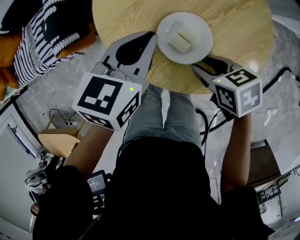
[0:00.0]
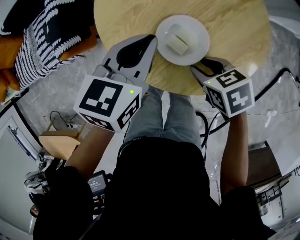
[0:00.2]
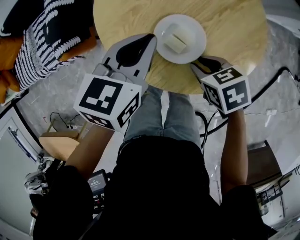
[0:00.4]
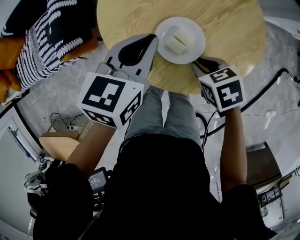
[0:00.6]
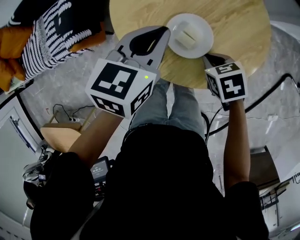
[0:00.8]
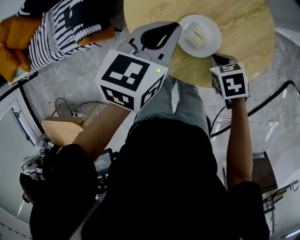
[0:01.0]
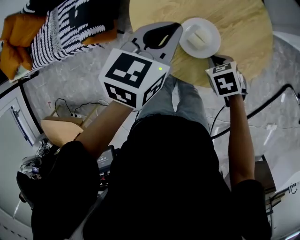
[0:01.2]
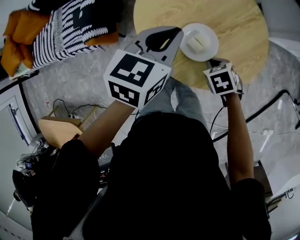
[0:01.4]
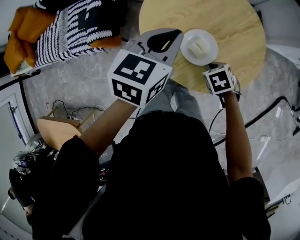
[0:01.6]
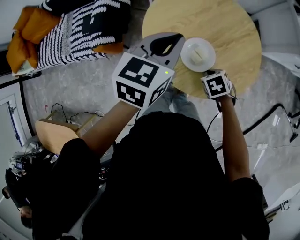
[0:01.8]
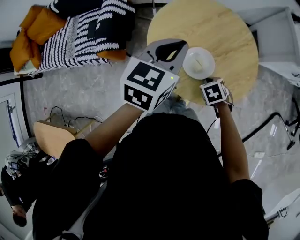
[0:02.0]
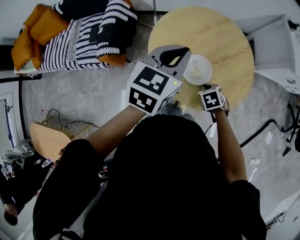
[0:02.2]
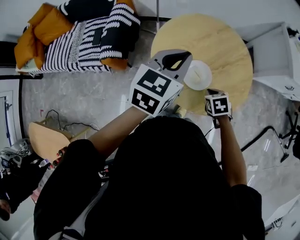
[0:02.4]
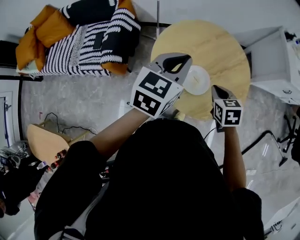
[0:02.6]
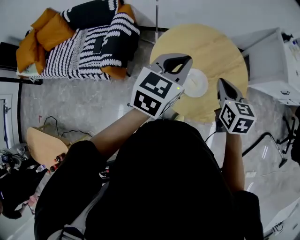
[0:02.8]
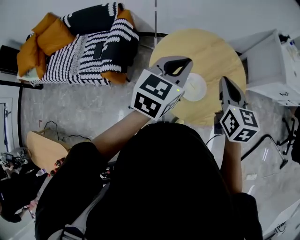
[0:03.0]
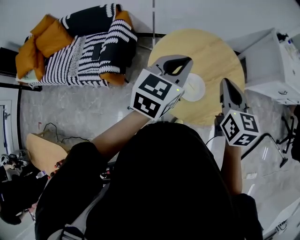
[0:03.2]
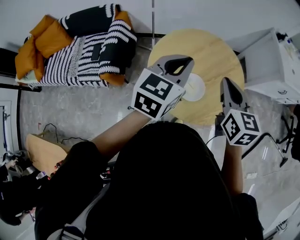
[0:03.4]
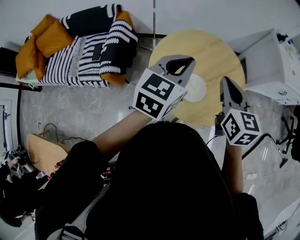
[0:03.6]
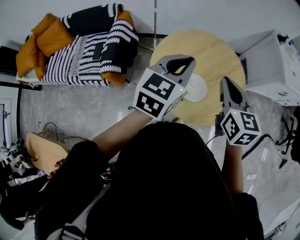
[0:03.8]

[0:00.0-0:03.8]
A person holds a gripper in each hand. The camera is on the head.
0:00.0 to 0:01.2: The left gripper goes approximately 5 cm upward. Meanwhile the right gripper turns by roughly 30 degrees, and closes up.
0:01.2 to 0:02.6: The grippers both shift upward by about 15 cm. The right gripper turns by some 20 degrees.
0:02.6 to 0:03.8: The right gripper is displaced upward by roughly 20 cm, and swivels approximately 30 degrees.

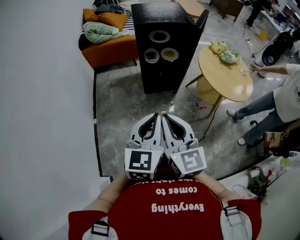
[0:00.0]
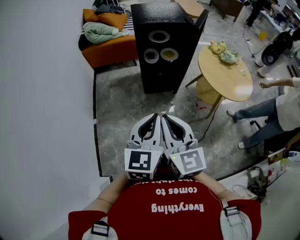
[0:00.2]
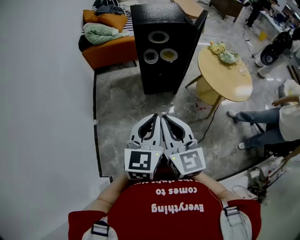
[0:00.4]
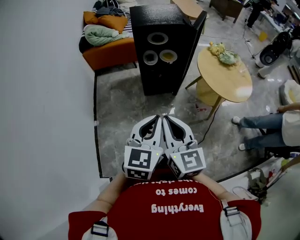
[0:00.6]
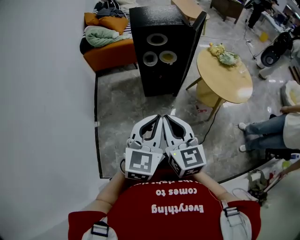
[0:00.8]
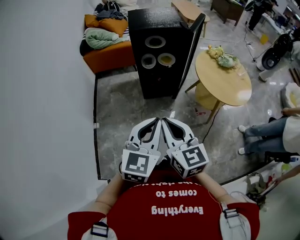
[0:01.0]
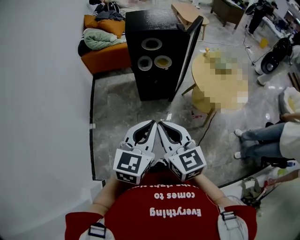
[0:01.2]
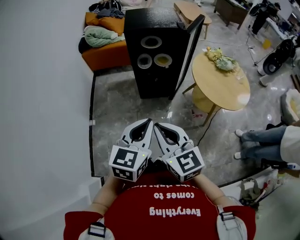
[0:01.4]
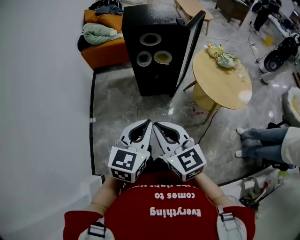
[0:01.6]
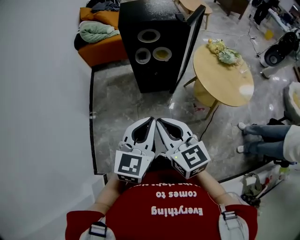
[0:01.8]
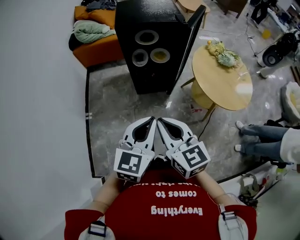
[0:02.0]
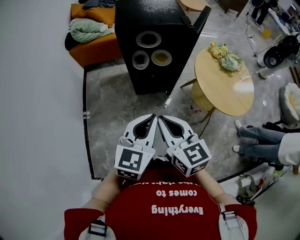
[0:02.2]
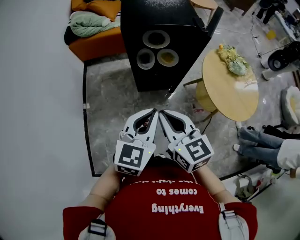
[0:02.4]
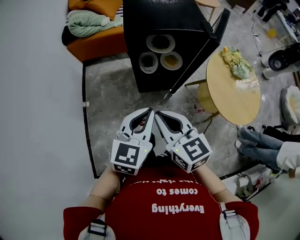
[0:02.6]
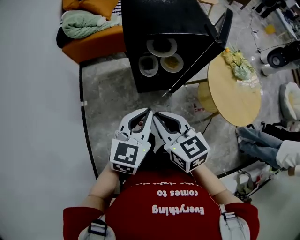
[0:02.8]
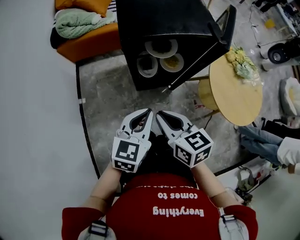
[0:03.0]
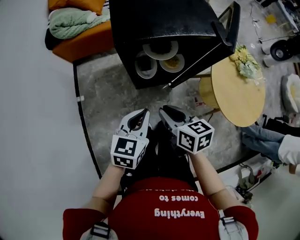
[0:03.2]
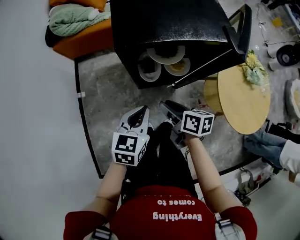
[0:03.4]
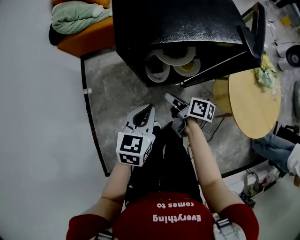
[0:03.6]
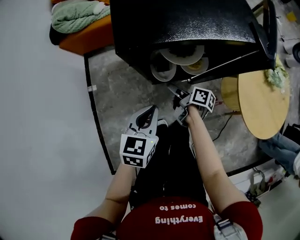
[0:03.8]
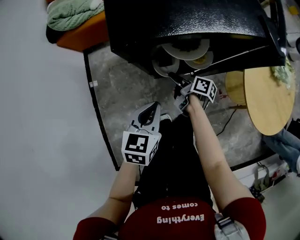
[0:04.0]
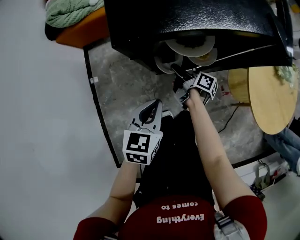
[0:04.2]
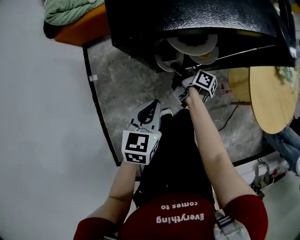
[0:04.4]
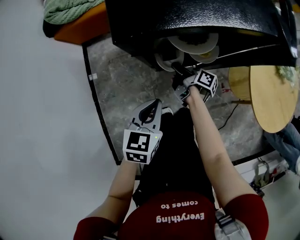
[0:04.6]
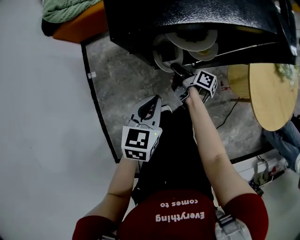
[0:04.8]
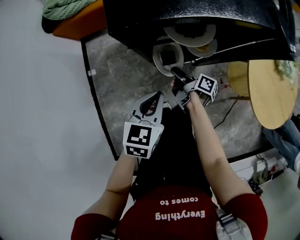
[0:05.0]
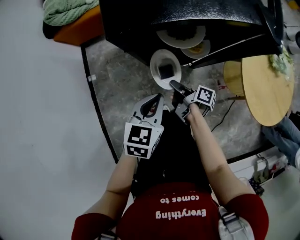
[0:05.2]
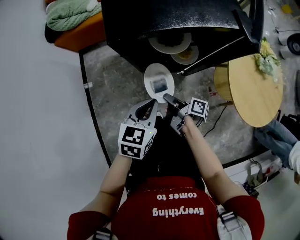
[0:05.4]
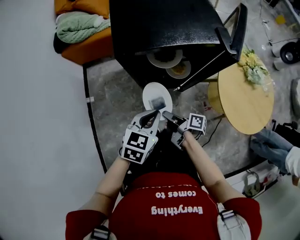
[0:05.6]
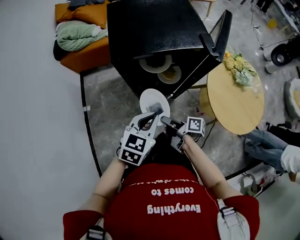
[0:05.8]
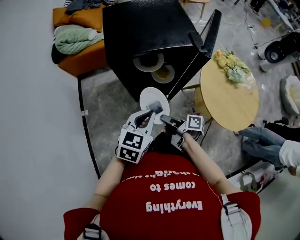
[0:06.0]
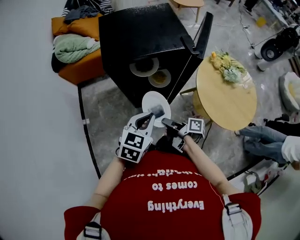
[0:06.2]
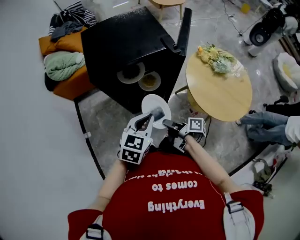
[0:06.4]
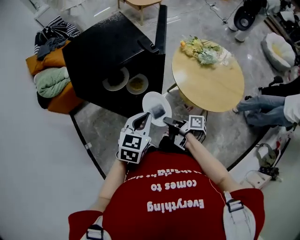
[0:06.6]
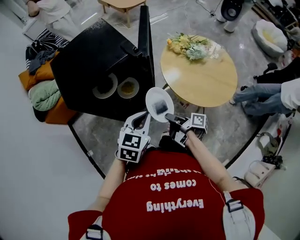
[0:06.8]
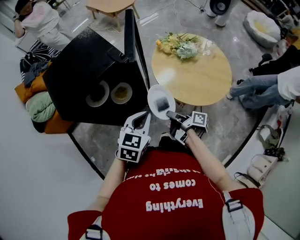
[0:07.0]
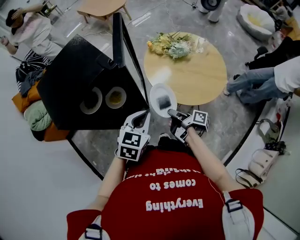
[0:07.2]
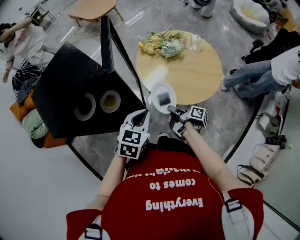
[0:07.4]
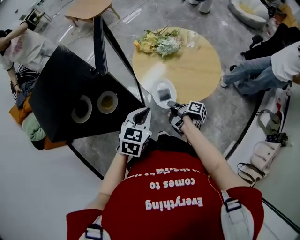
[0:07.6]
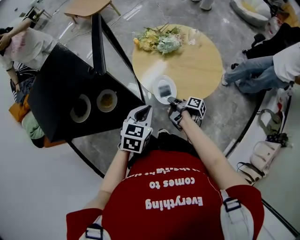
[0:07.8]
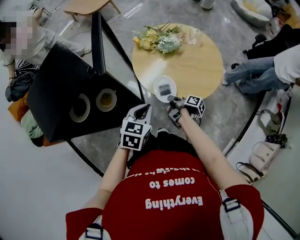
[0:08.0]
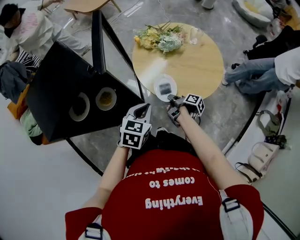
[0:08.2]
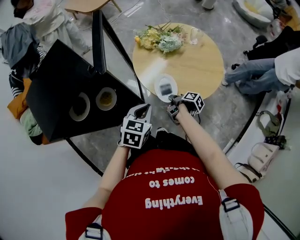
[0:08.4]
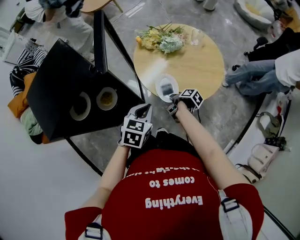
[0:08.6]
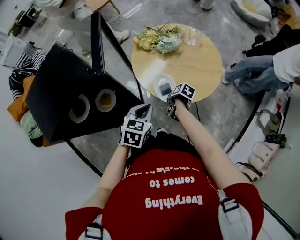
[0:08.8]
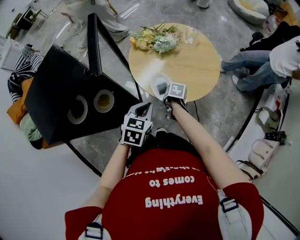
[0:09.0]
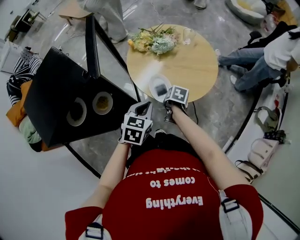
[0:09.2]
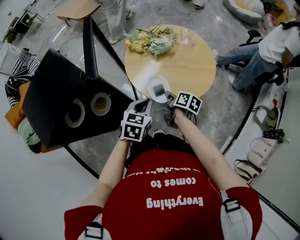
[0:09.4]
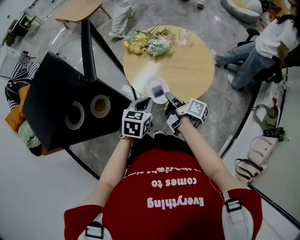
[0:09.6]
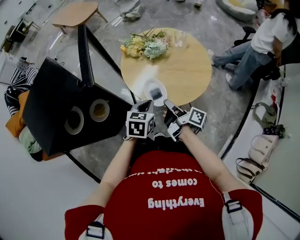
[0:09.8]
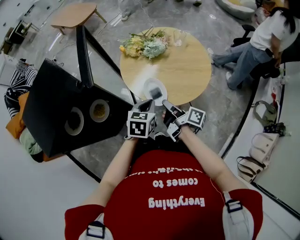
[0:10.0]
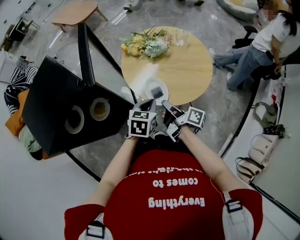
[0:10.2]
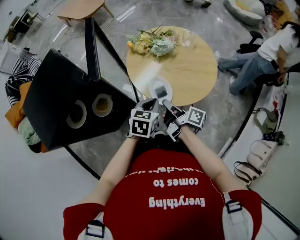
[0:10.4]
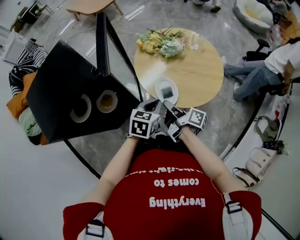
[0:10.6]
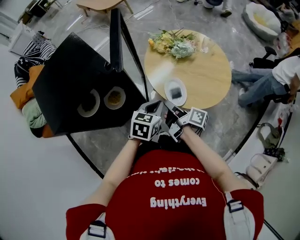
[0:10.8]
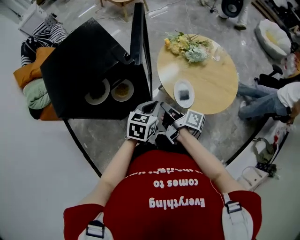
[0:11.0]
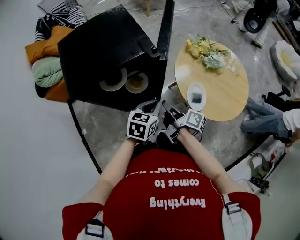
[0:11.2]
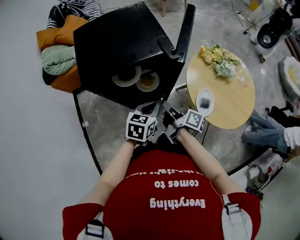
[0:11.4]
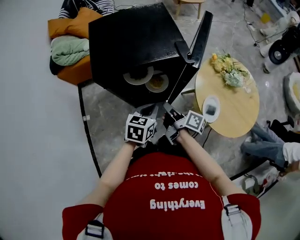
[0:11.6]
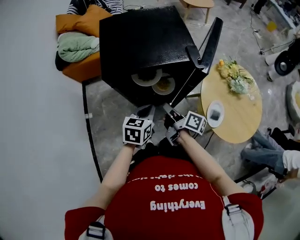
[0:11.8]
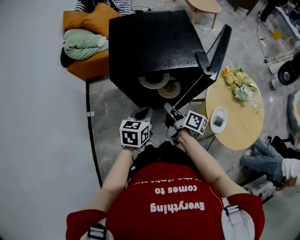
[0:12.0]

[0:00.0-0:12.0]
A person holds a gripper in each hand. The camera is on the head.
0:00.0 to 0:01.6: The left gripper shifts by about 10 cm.
0:01.6 to 0:03.0: The left gripper ends up about 35 cm from where it was.
0:03.0 to 0:04.4: The left gripper goes some 20 cm downward.
0:04.4 to 0:06.0: The left gripper shifts roughly 15 cm upward.
0:06.0 to 0:07.6: The left gripper changes place by approximately 25 cm, and turns by roughly 30 degrees.
0:07.6 to 0:09.0: The left gripper changes place by some 5 cm.
0:10.4 to 0:12.0: The left gripper shifts by some 35 cm, and rotates some 50 degrees.

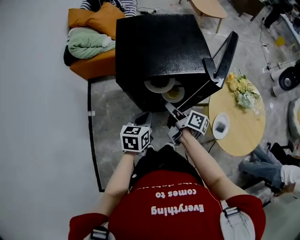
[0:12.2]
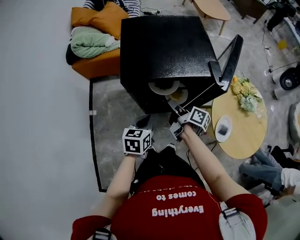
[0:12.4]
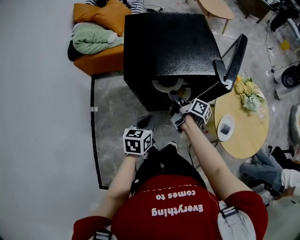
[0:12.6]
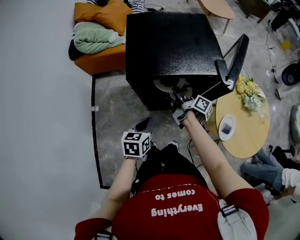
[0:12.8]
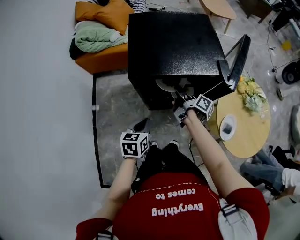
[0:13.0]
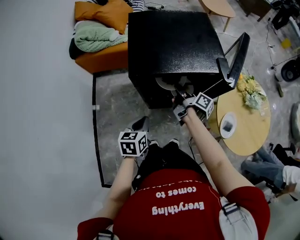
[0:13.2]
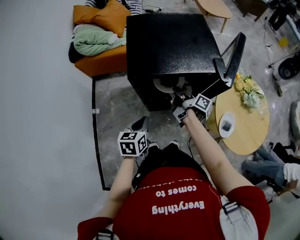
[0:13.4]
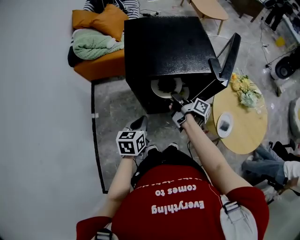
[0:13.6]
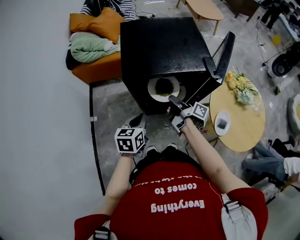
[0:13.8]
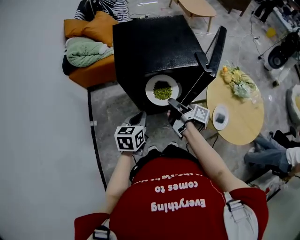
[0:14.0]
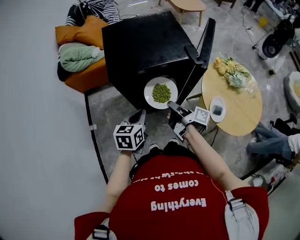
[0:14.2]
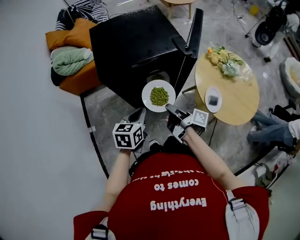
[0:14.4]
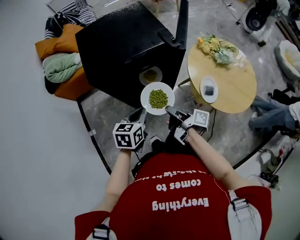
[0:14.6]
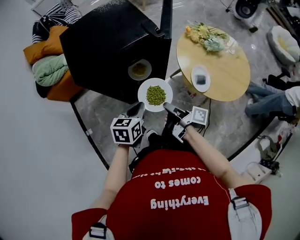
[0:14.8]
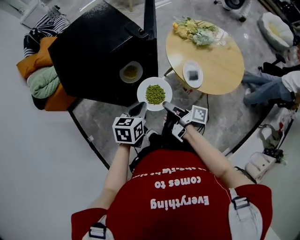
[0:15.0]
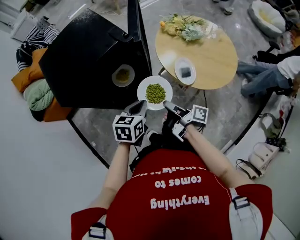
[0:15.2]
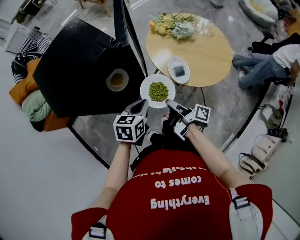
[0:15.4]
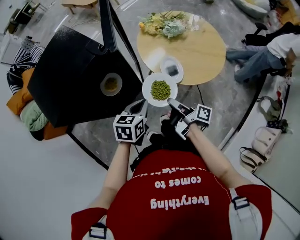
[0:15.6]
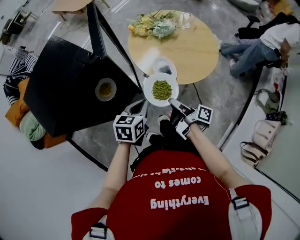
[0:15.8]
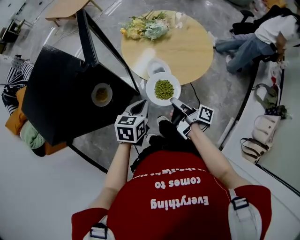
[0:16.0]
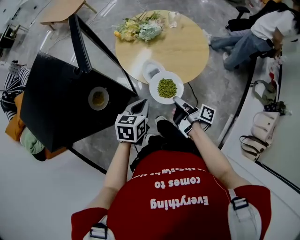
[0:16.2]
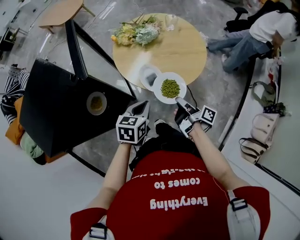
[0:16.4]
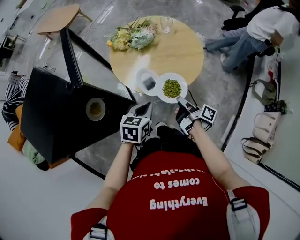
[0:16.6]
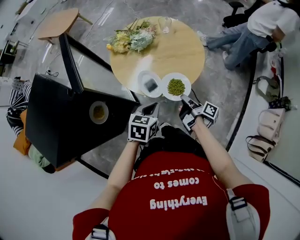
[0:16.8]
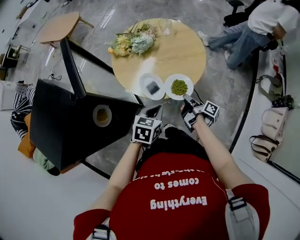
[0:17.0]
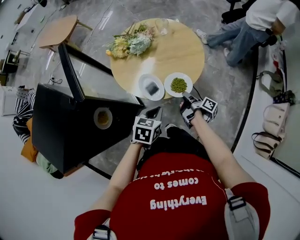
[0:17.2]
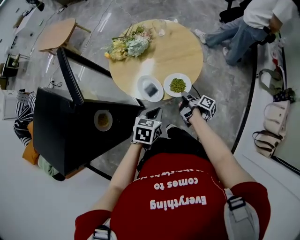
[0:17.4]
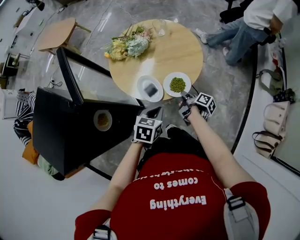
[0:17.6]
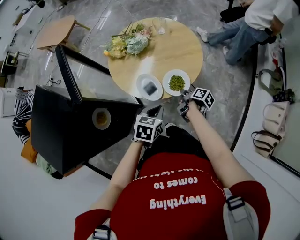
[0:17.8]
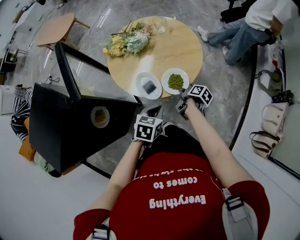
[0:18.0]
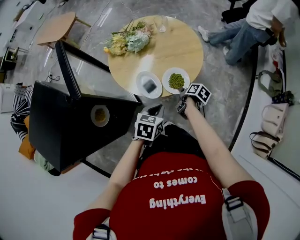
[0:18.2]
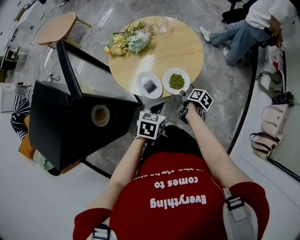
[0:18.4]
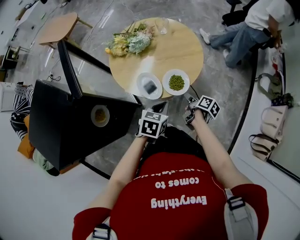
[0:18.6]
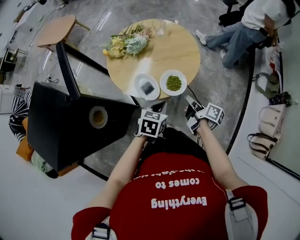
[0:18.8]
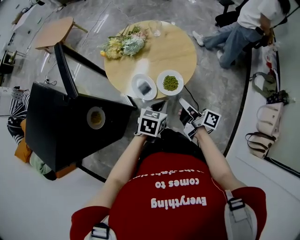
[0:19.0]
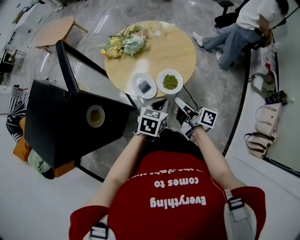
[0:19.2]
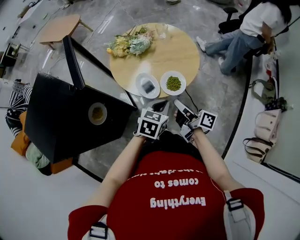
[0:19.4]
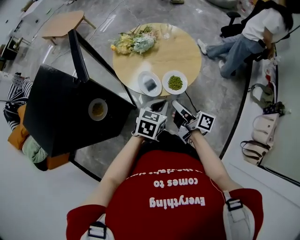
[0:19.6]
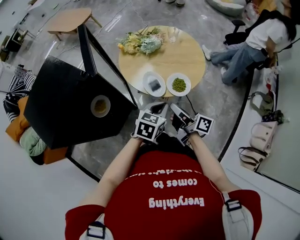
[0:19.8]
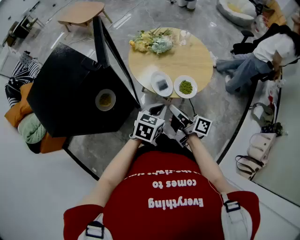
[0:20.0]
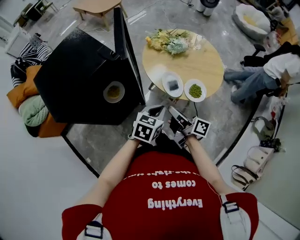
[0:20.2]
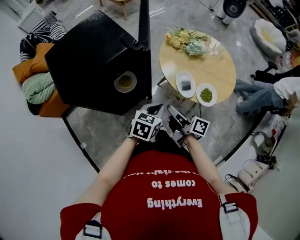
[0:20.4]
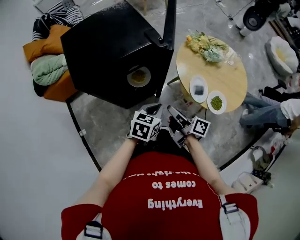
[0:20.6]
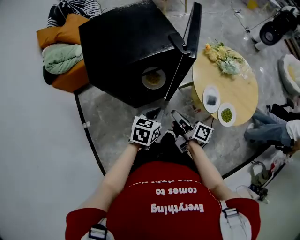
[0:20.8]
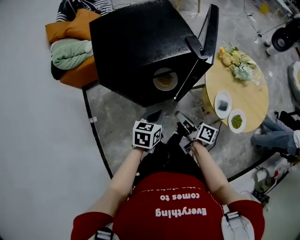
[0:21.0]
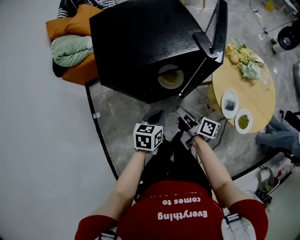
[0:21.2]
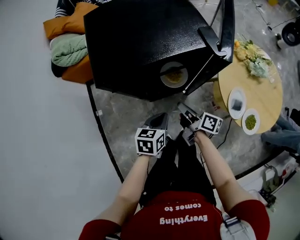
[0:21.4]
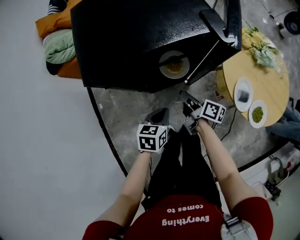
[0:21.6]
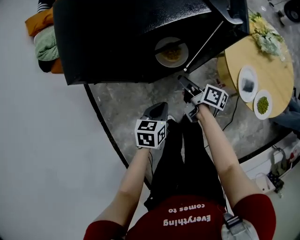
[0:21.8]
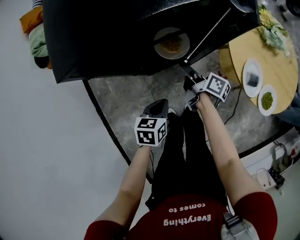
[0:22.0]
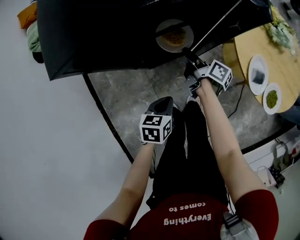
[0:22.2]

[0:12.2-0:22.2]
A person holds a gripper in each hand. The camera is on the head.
0:12.2 to 0:13.6: The left gripper changes place by some 5 cm.
0:13.6 to 0:15.0: The left gripper changes place by roughly 20 cm, and rotates approximately 30 degrees.
0:15.0 to 0:16.4: The left gripper changes place by about 20 cm, and turns by roughly 30 degrees.
0:16.4 to 0:18.0: The left gripper ends up approximately 10 cm from where it was.
0:18.0 to 0:19.4: The left gripper moves upward, approximately 5 cm.
0:19.4 to 0:20.8: The left gripper ends up approximately 35 cm from where it was, and turns by some 50 degrees.
0:20.8 to 0:22.2: The left gripper heads downward, covering about 20 cm.
